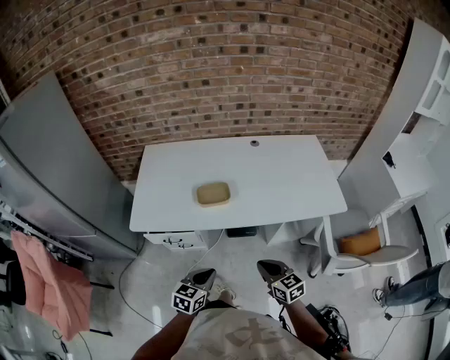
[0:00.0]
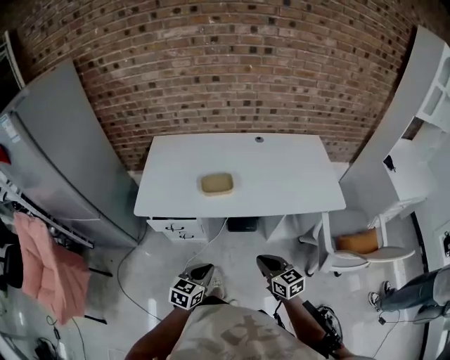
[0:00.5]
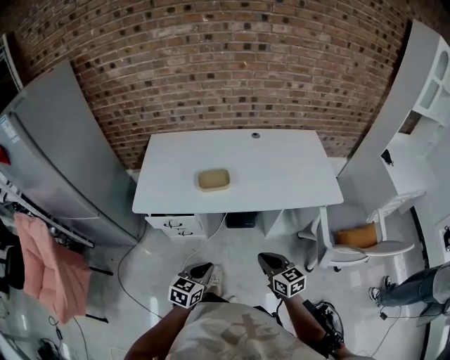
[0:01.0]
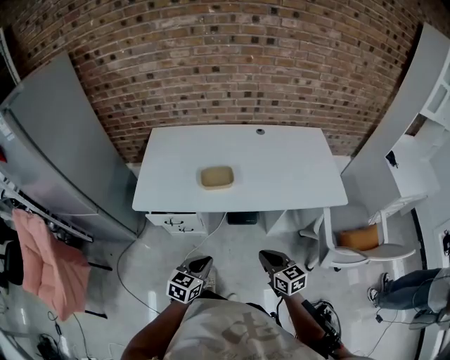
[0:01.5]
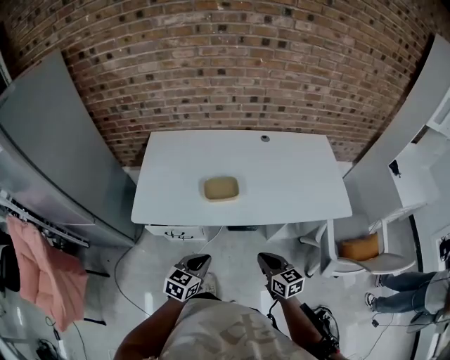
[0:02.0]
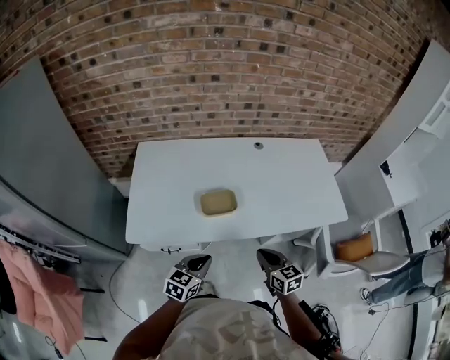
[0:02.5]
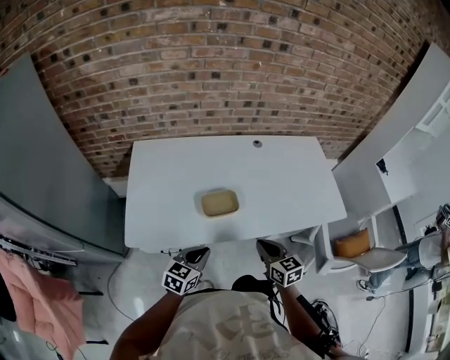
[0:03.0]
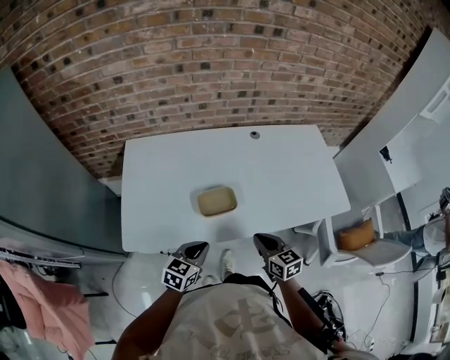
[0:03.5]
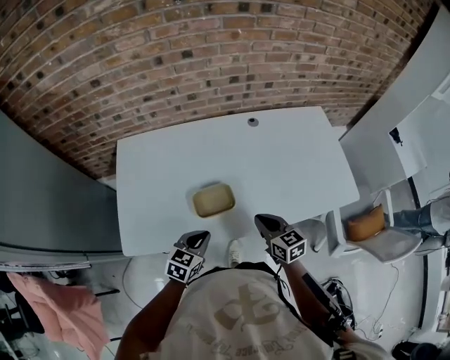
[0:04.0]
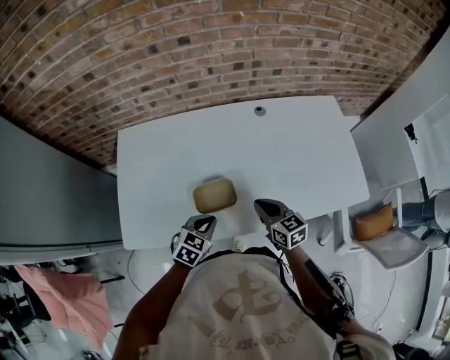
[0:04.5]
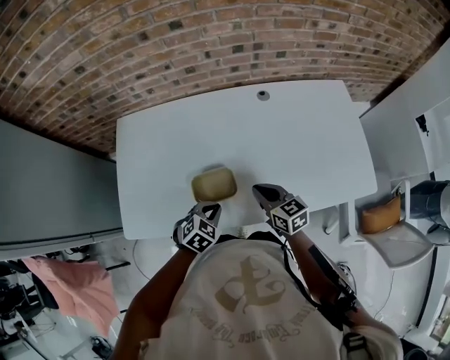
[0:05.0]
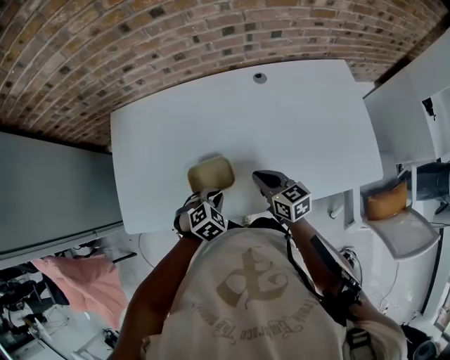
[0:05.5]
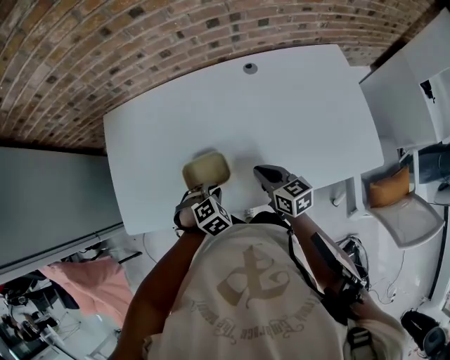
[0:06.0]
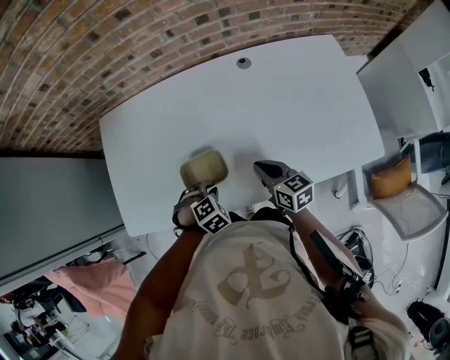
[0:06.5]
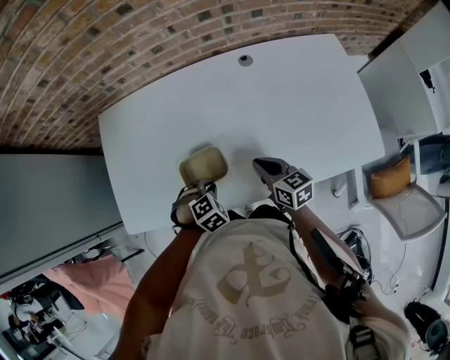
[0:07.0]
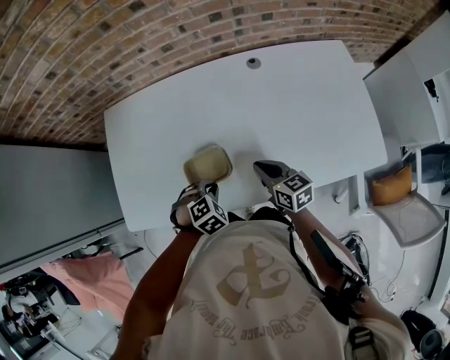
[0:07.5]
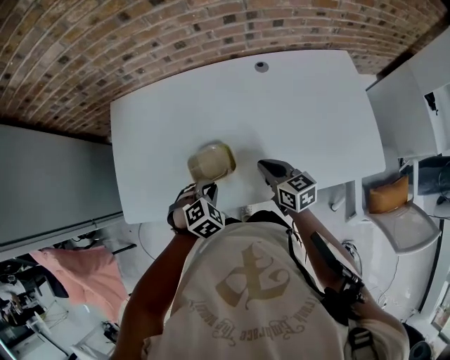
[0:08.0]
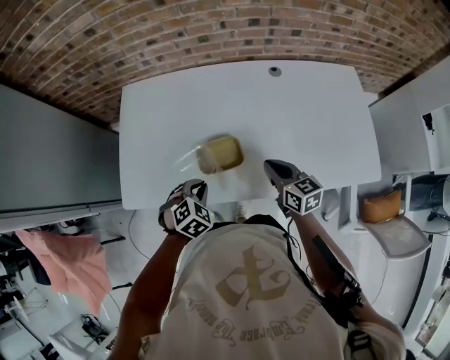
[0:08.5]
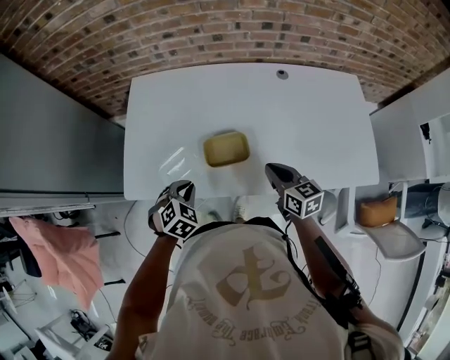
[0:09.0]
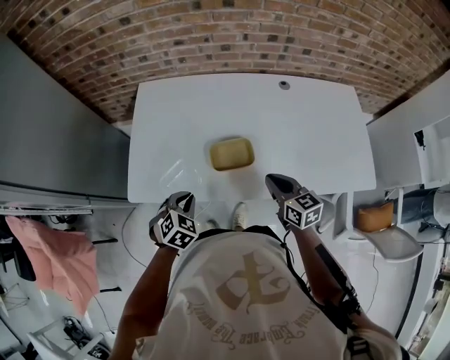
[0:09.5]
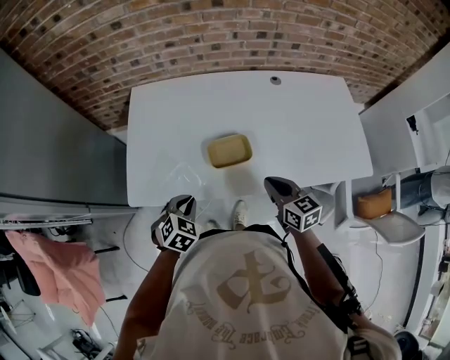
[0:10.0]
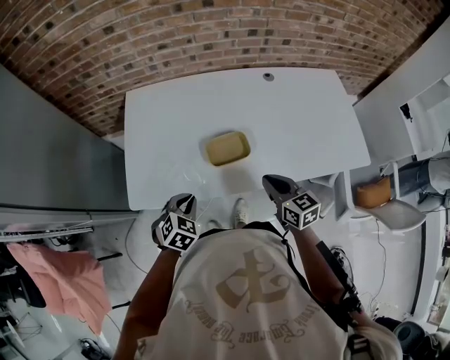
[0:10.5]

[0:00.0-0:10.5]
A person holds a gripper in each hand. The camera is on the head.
0:00.0 to 0:02.0: The left gripper changes place by approximately 5 cm.
0:02.0 to 0:04.0: Both grippers travel together forward, some 20 cm.
0:04.0 to 0:06.5: The left gripper is displaced downward by roughly 10 cm, and tilts its fingers approximately 40 degrees downward. The right gripper ends up roughly 10 cm from where it was.
0:06.5 to 0:08.5: The right gripper shifts by approximately 5 cm. The left gripper changes place by about 10 cm, and turns by approximately 20 degrees.
0:08.5 to 0:10.5: The right gripper goes approximately 10 cm backward and to the left. The left gripper moves to the left and backward, some 10 cm.

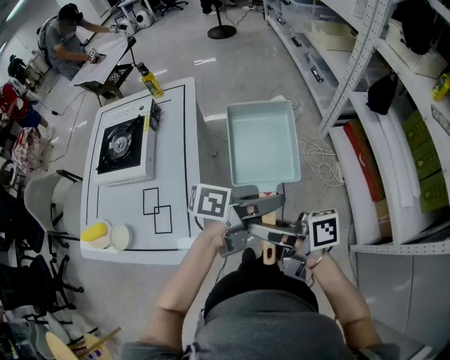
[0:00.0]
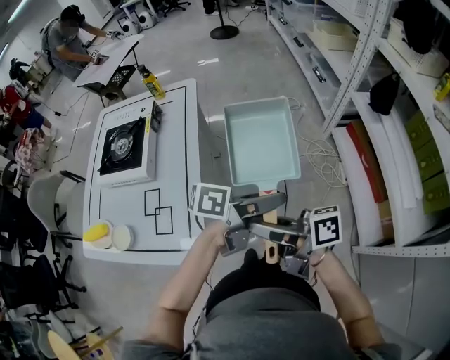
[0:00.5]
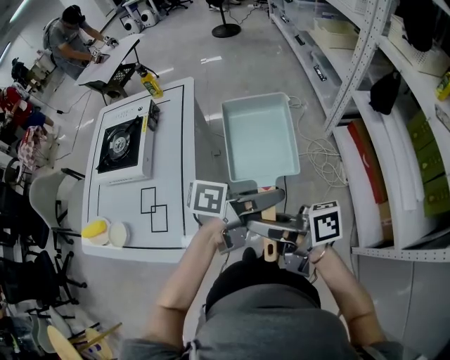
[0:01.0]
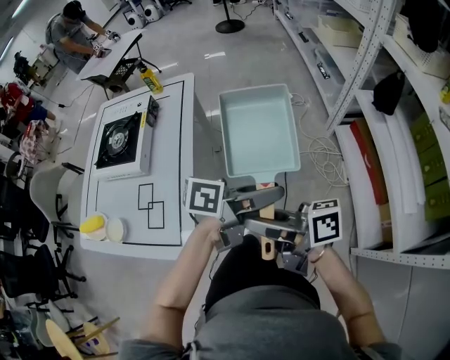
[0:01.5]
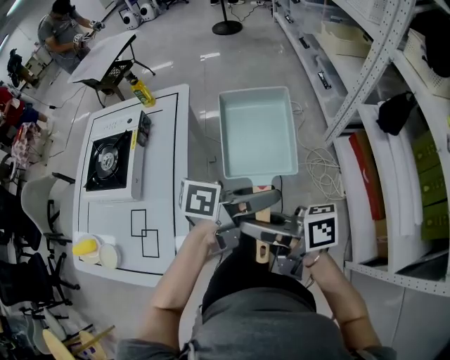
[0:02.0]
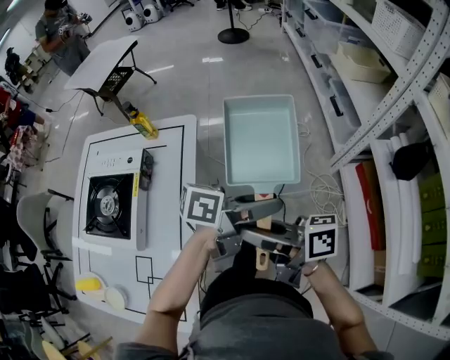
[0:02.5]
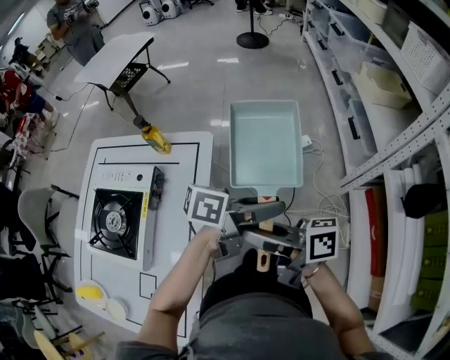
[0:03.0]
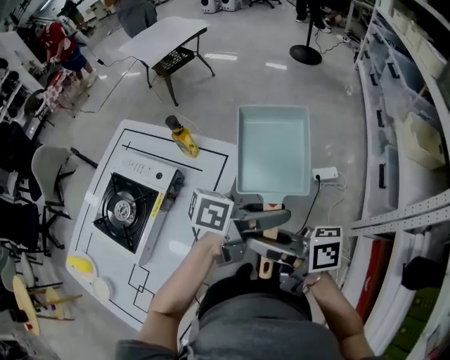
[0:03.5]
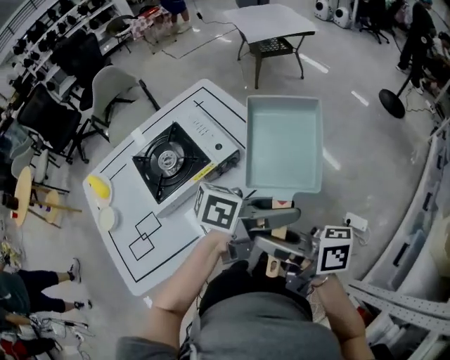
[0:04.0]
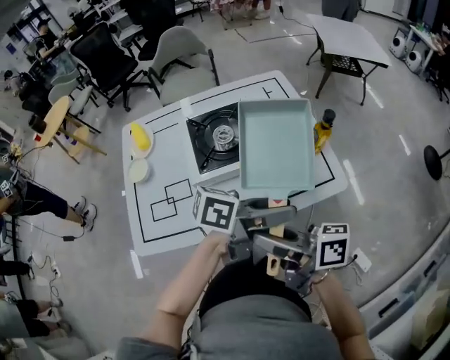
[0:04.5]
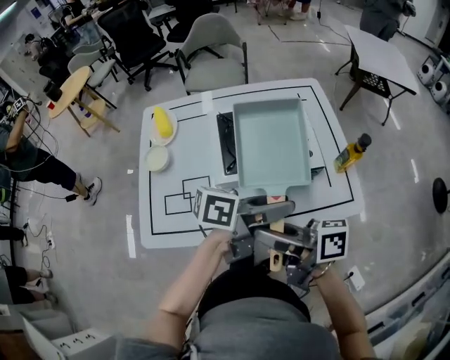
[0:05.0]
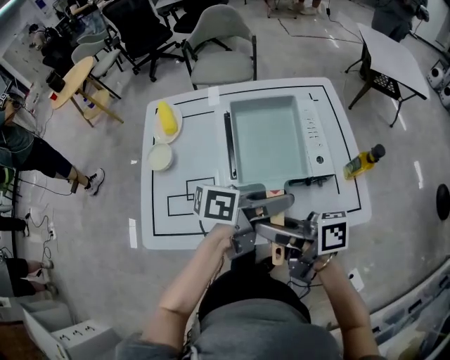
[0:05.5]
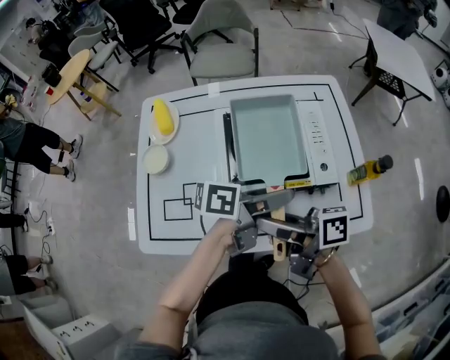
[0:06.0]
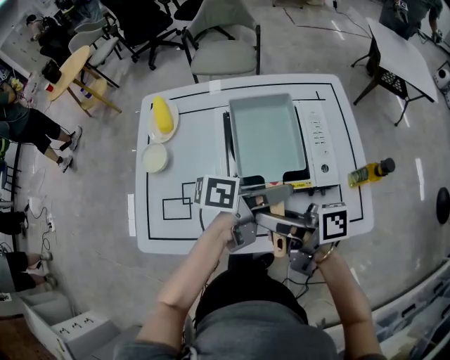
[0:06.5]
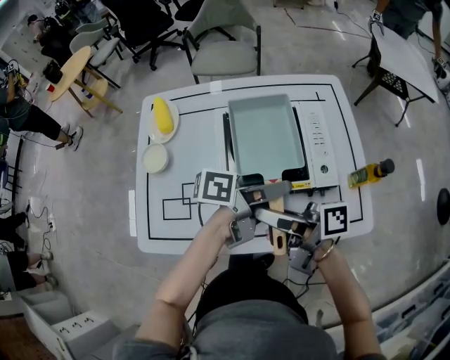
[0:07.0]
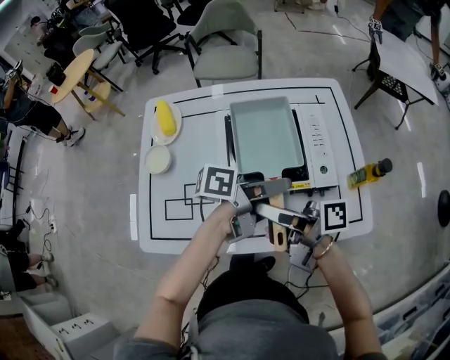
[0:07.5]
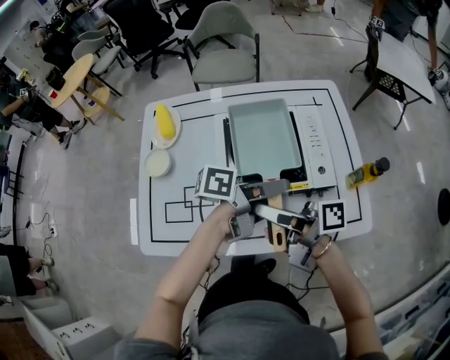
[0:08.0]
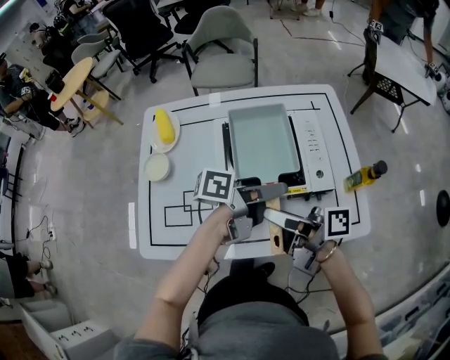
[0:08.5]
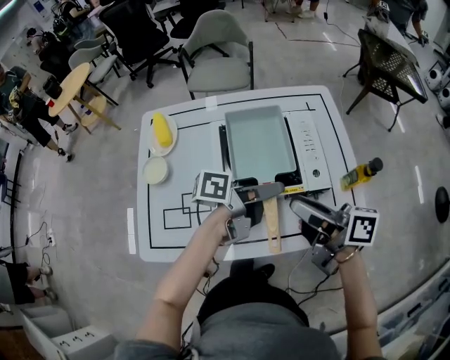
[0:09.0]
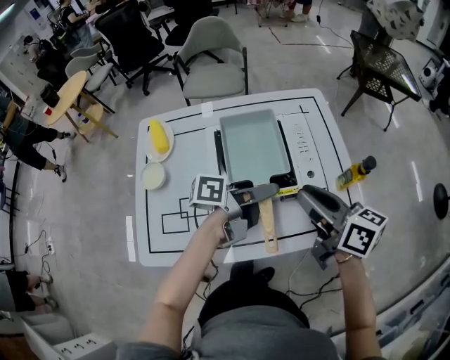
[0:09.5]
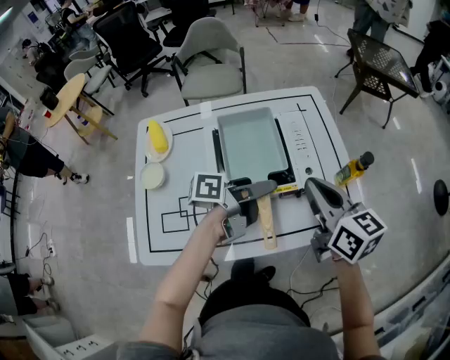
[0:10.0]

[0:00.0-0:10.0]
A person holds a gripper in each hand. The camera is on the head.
0:00.0 to 0:02.0: The right gripper moves roughly 10 cm; the left gripper moves about 10 cm.
0:02.0 to 0:04.0: The left gripper changes place by approximately 40 cm, and changes its angle by some 50 degrees; the right gripper moves about 30 cm, and swivels approximately 50 degrees.
0:04.0 to 0:06.0: The left gripper ends up some 30 cm from where it was, and rotates roughly 50 degrees, while the right gripper shifts by about 20 cm, and turns by approximately 40 degrees.
0:06.0 to 0:08.0: There are only small adjustments of the grippers.
0:08.0 to 0:10.0: The right gripper shifts by roughly 15 cm, turns by approximately 70 degrees, and closes its fingers.

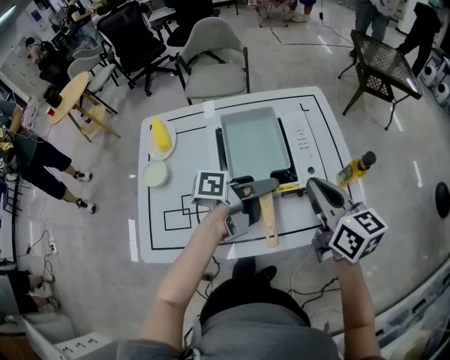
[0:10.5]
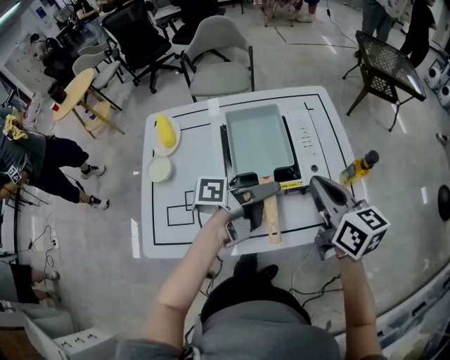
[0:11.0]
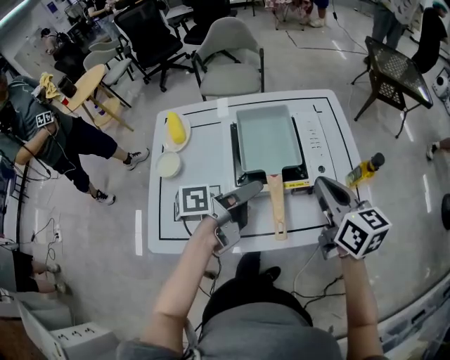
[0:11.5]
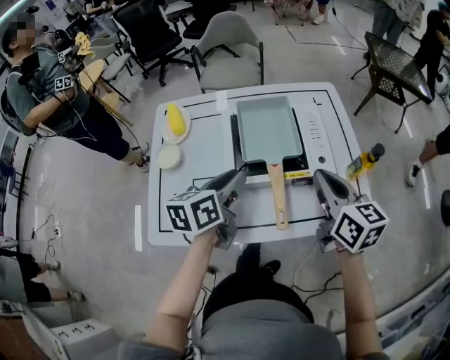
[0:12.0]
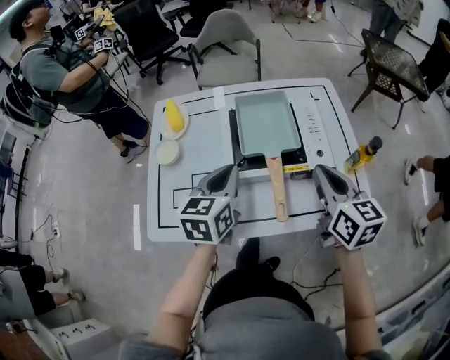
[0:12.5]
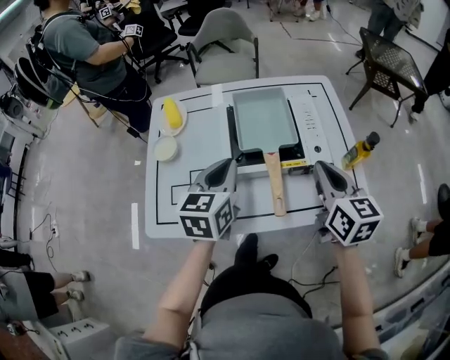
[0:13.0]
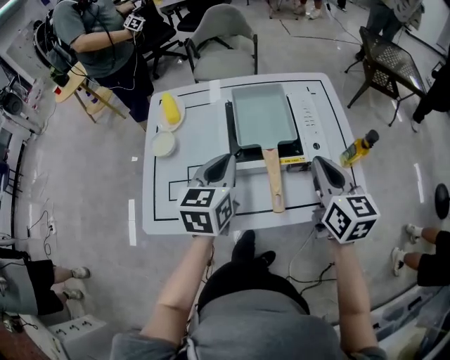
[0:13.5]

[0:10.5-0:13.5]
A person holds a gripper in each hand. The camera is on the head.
0:10.5 to 0:12.0: The left gripper moves to the left, some 10 cm, and turns by roughly 50 degrees.
0:12.0 to 0:13.5: The left gripper changes its angle by some 30 degrees, and closes up.

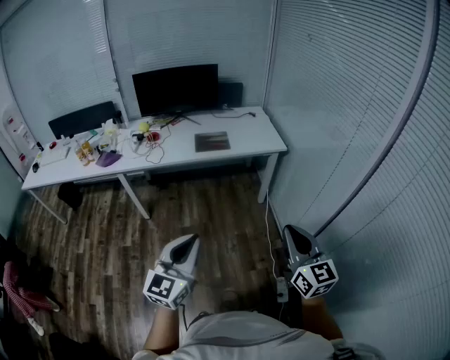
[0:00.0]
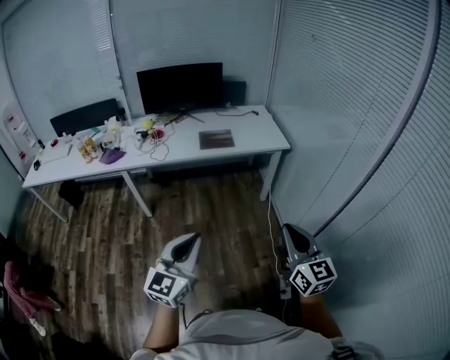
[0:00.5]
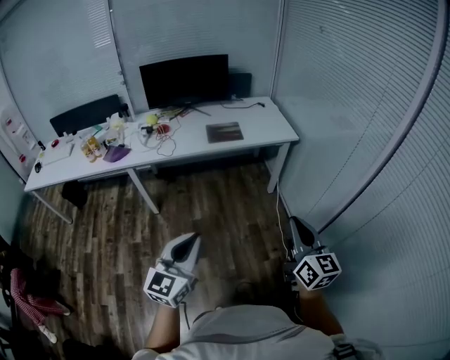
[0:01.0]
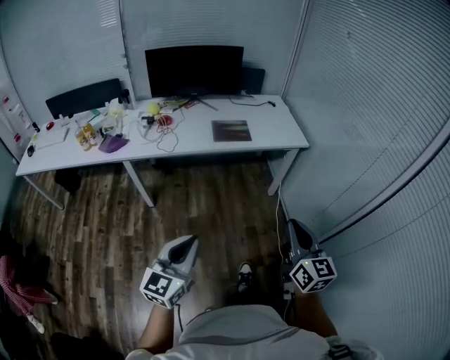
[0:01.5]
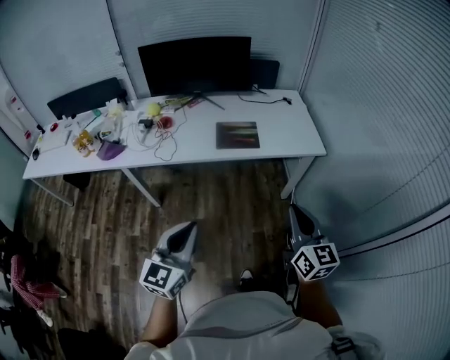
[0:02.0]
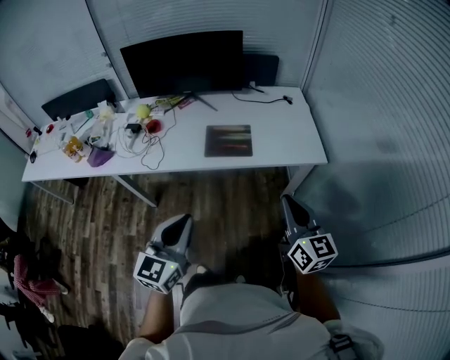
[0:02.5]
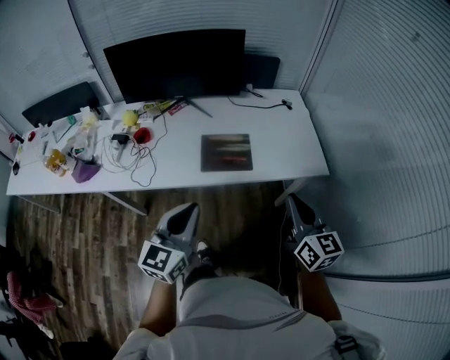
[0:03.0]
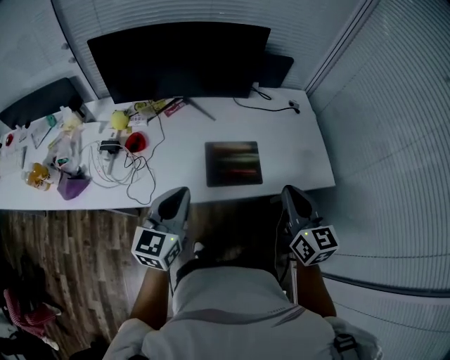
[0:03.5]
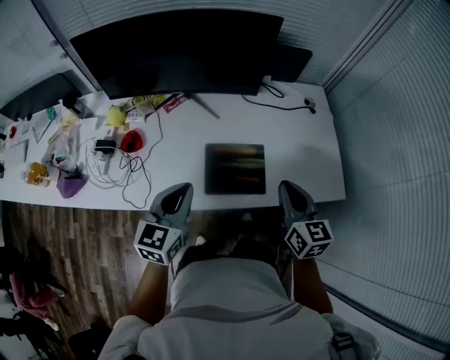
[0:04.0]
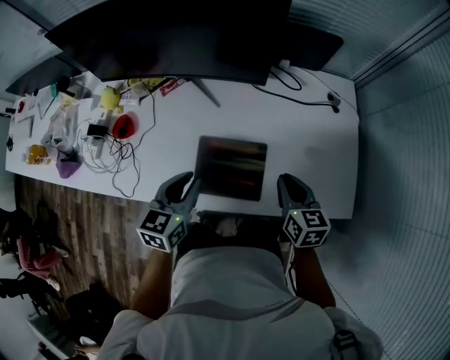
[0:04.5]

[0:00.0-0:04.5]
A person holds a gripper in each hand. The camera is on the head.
0:00.0 to 0:02.0: The left gripper heads forward and to the left, covering some 30 cm, while the right gripper heads forward, covering about 30 cm.
0:02.0 to 0:04.5: The pair of grippers is taken forward, some 60 cm. The left gripper swivels about 30 degrees; the right gripper rotates approximately 30 degrees.
